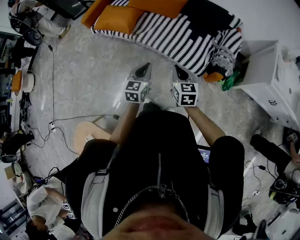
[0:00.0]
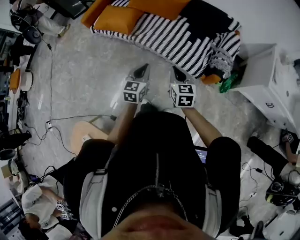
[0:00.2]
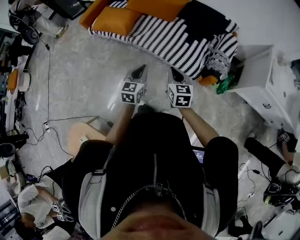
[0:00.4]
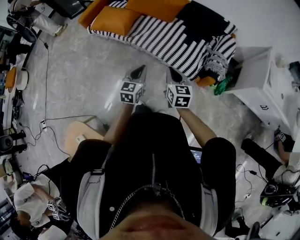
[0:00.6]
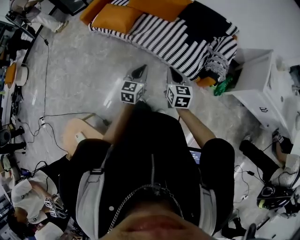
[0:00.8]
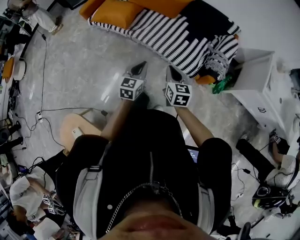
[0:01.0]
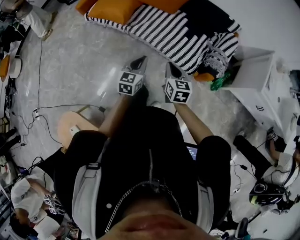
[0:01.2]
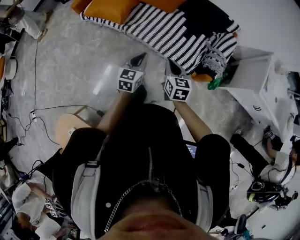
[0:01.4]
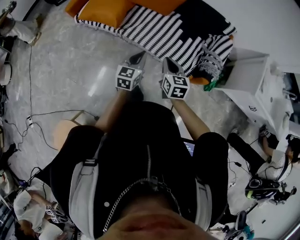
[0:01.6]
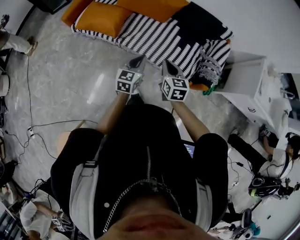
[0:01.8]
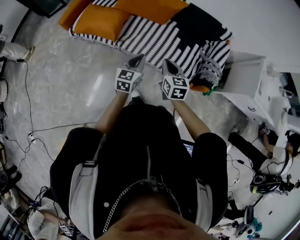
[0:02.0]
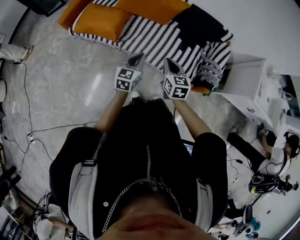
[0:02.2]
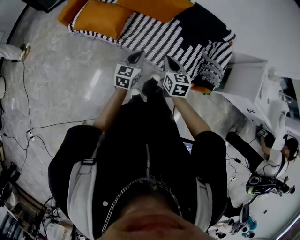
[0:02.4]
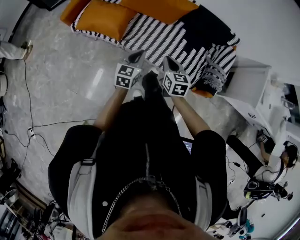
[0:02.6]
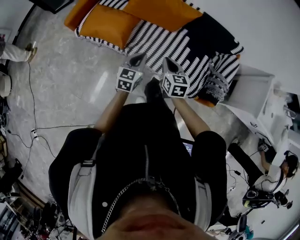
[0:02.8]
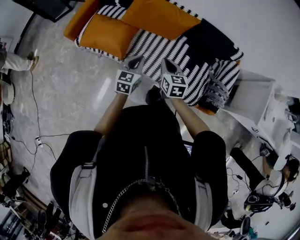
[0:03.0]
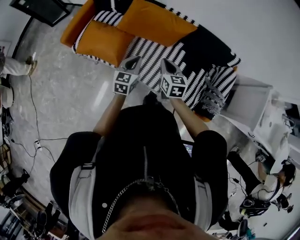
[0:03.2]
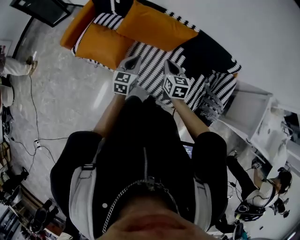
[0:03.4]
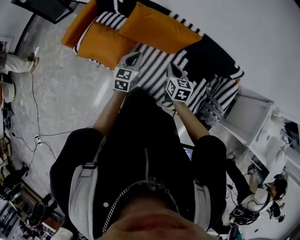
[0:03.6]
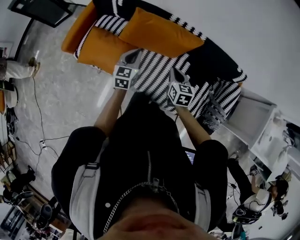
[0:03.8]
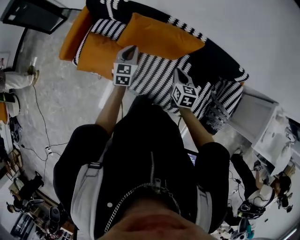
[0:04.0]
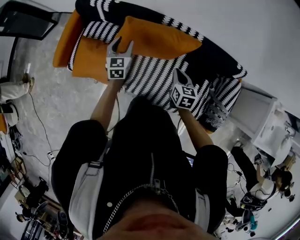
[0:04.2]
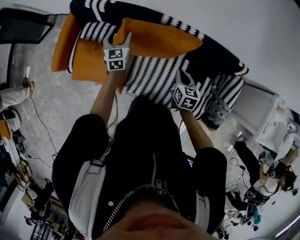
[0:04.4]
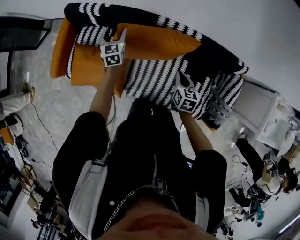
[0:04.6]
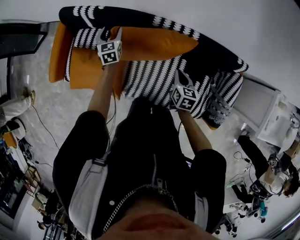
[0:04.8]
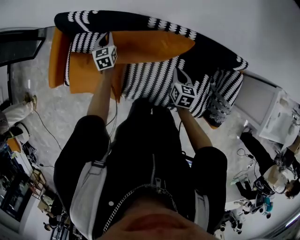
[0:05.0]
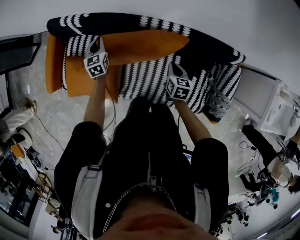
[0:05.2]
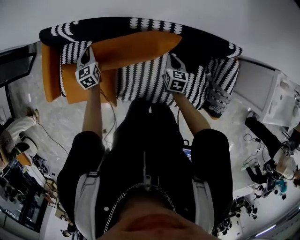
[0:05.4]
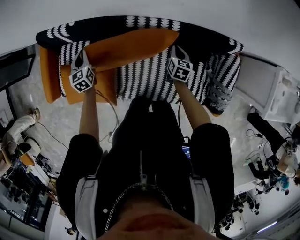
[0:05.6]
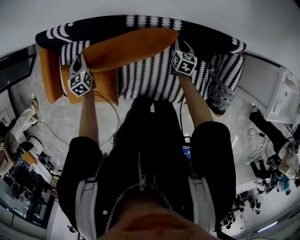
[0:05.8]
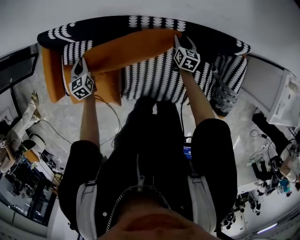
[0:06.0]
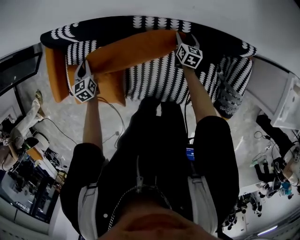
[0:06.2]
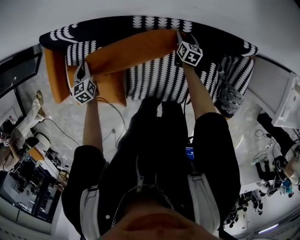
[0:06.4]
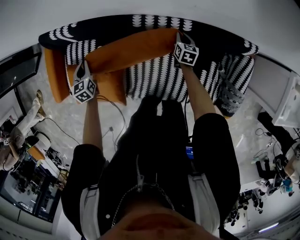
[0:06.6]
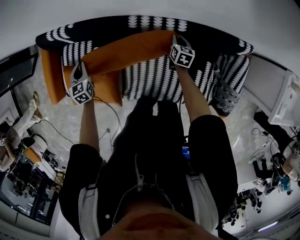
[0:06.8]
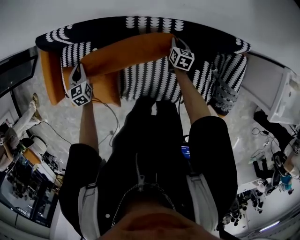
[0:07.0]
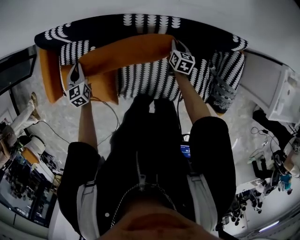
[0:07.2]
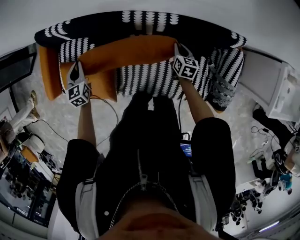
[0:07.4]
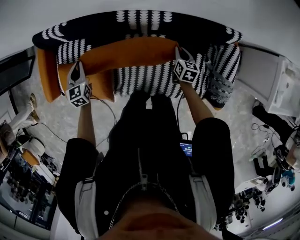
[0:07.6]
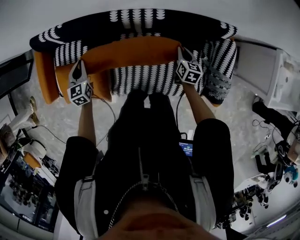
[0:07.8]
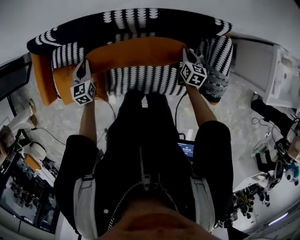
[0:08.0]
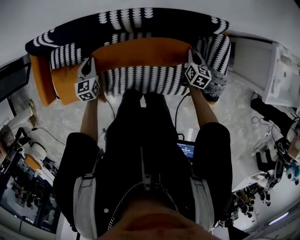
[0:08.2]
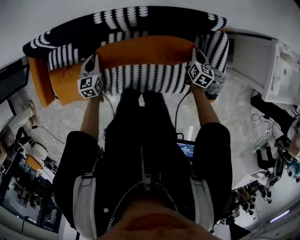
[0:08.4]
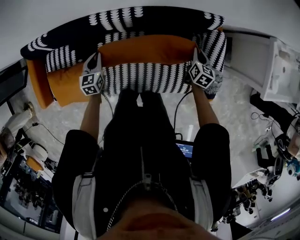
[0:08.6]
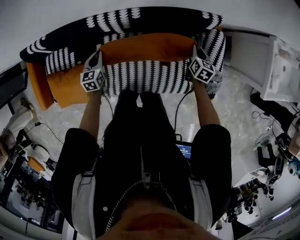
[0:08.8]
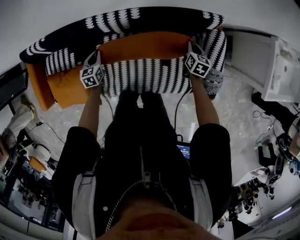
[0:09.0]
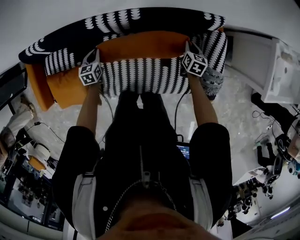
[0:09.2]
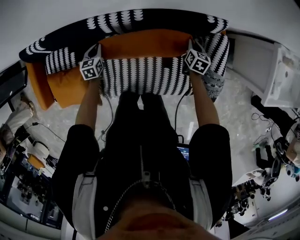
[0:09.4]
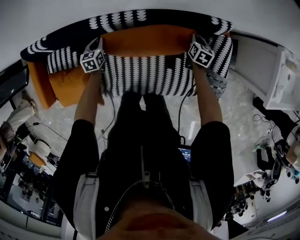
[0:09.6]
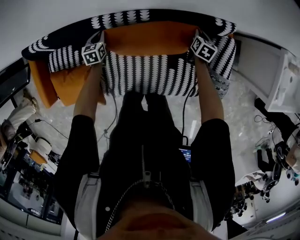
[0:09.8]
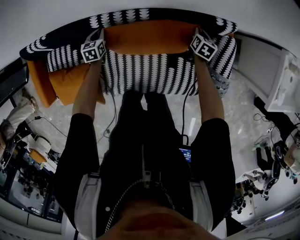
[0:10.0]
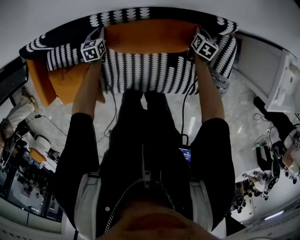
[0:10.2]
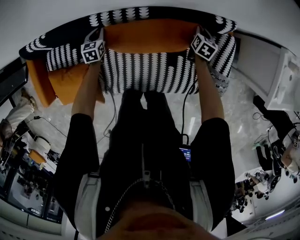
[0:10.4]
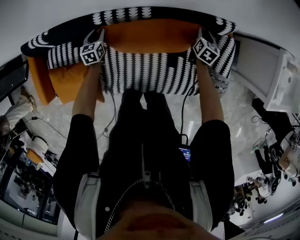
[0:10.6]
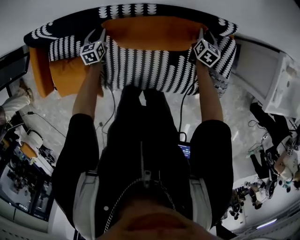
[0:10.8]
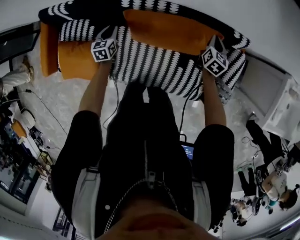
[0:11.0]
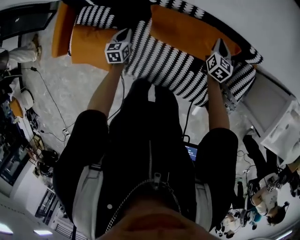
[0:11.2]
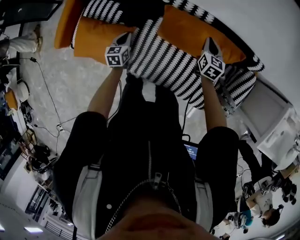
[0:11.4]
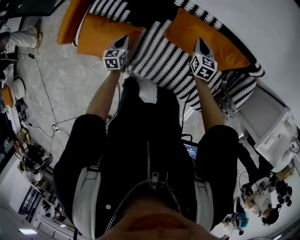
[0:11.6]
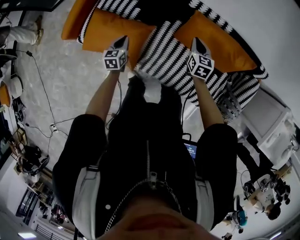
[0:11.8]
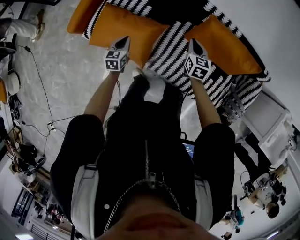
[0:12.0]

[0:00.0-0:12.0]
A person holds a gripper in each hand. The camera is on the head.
0:00.0 to 0:01.6: Both grippers travel together forward, some 10 cm.
0:01.6 to 0:03.0: The right gripper heads forward, covering some 30 cm. The left gripper travels forward and to the left by some 30 cm.
0:03.0 to 0:04.4: The left gripper heads forward, covering roughly 50 cm, and opens its fingers; the right gripper shifts approximately 30 cm forward, and rotates about 20 degrees.
0:04.4 to 0:06.0: The right gripper shifts some 30 cm forward, to the right and downward, and opens up; the left gripper heads downward and forward, covering some 10 cm, and closes.
0:06.0 to 0:07.6: The left gripper goes approximately 10 cm backward, upward and to the right; the right gripper moves backward, about 15 cm, and closes.
0:07.6 to 0:09.0: The right gripper heads to the right, covering some 20 cm, while the left gripper moves to the right and downward, approximately 25 cm.
0:09.0 to 0:10.4: Both grippers travel together forward, some 10 cm.
0:10.4 to 0:12.0: The two grippers travel together, some 50 cm. The left gripper rotates roughly 20 degrees. Meanwhile the right gripper swivels roughly 50 degrees.

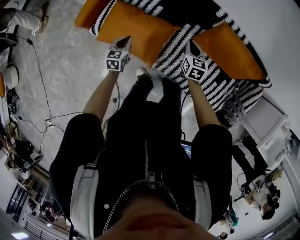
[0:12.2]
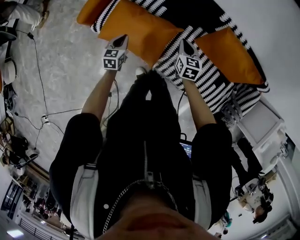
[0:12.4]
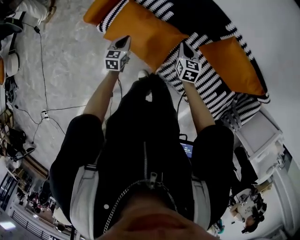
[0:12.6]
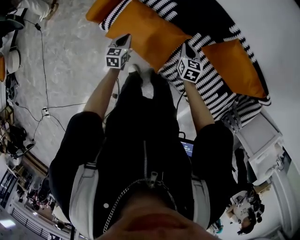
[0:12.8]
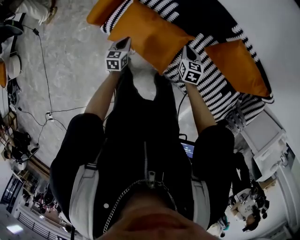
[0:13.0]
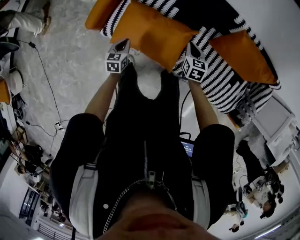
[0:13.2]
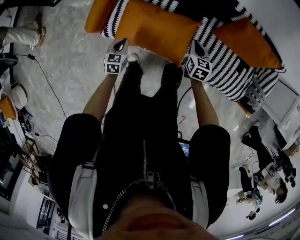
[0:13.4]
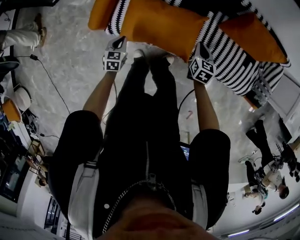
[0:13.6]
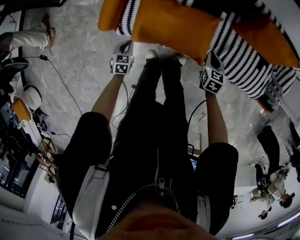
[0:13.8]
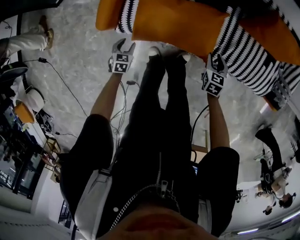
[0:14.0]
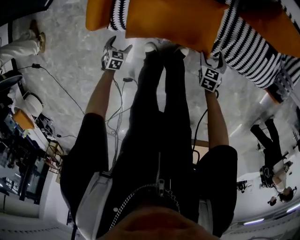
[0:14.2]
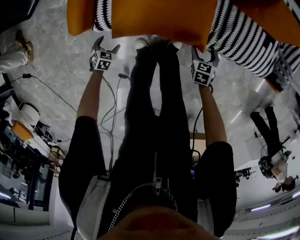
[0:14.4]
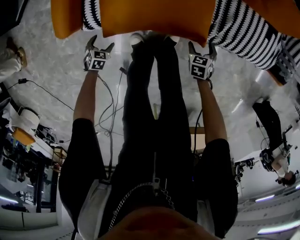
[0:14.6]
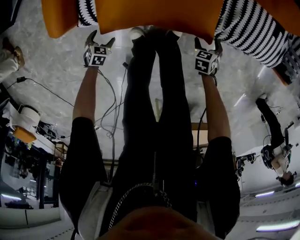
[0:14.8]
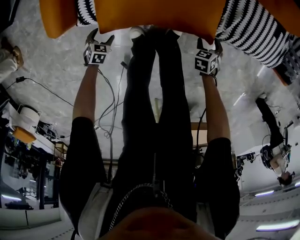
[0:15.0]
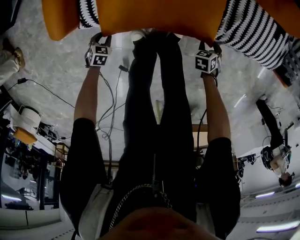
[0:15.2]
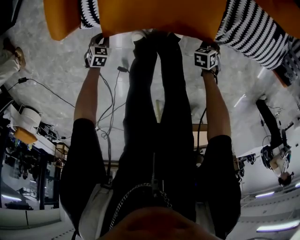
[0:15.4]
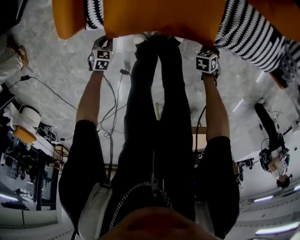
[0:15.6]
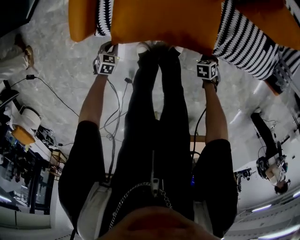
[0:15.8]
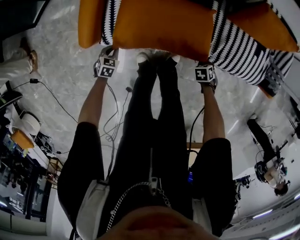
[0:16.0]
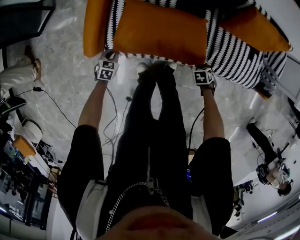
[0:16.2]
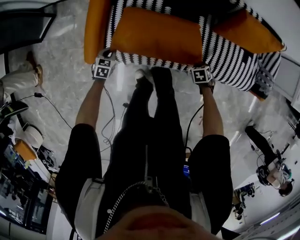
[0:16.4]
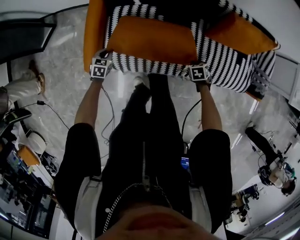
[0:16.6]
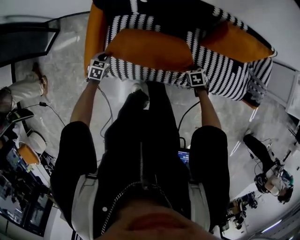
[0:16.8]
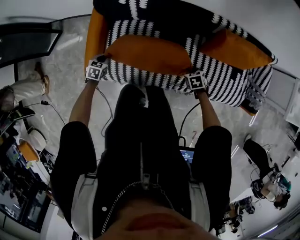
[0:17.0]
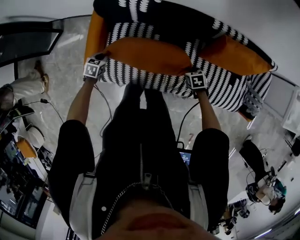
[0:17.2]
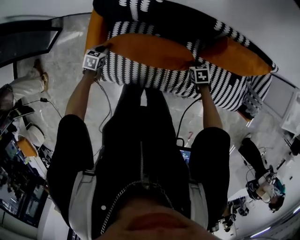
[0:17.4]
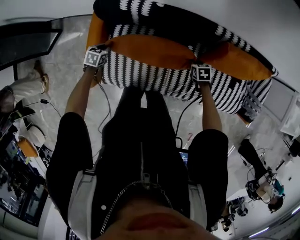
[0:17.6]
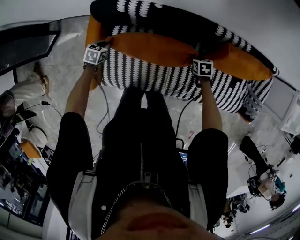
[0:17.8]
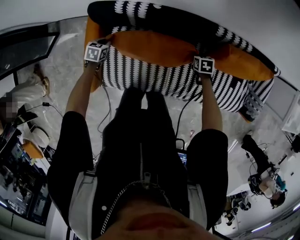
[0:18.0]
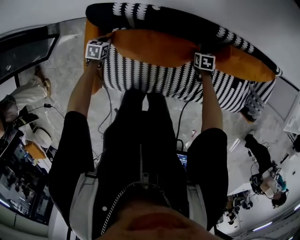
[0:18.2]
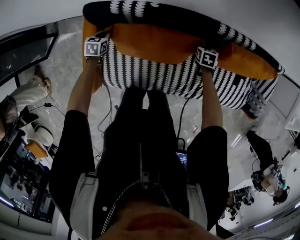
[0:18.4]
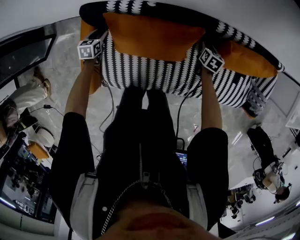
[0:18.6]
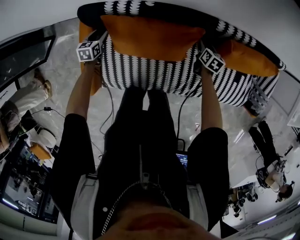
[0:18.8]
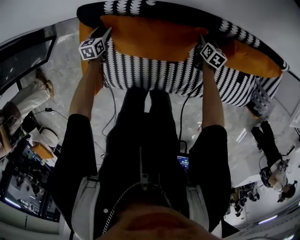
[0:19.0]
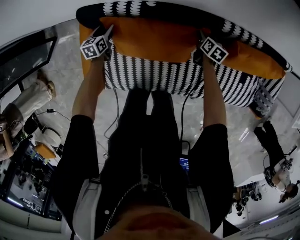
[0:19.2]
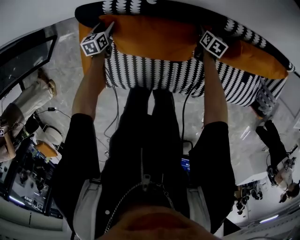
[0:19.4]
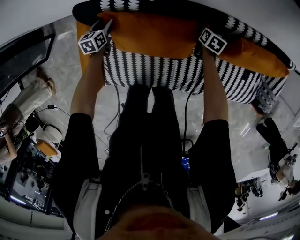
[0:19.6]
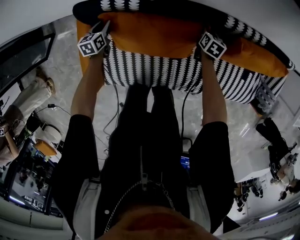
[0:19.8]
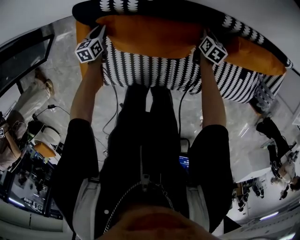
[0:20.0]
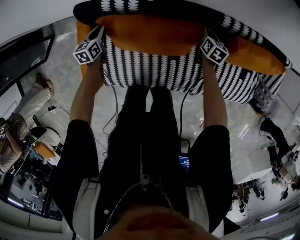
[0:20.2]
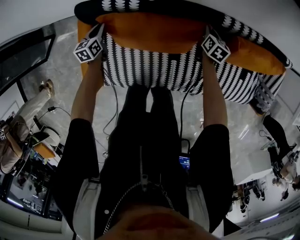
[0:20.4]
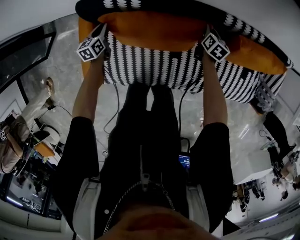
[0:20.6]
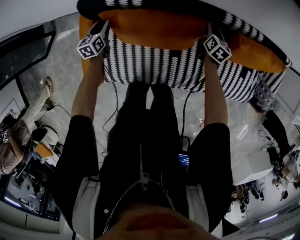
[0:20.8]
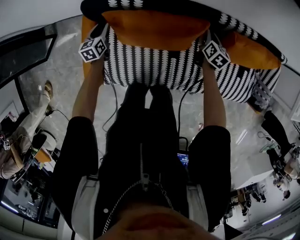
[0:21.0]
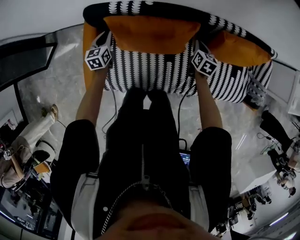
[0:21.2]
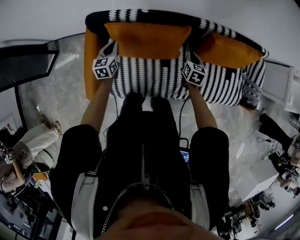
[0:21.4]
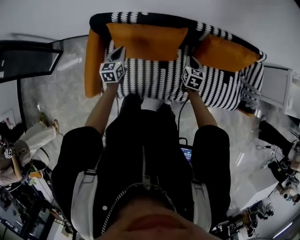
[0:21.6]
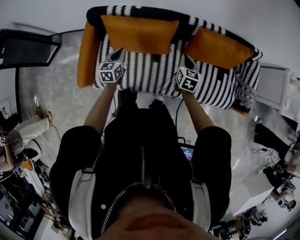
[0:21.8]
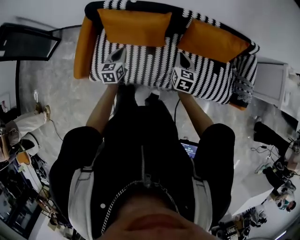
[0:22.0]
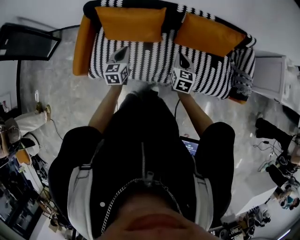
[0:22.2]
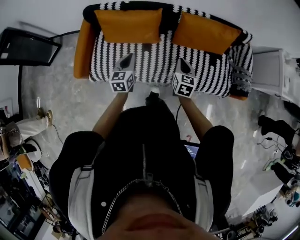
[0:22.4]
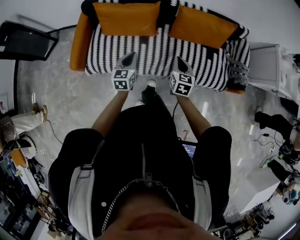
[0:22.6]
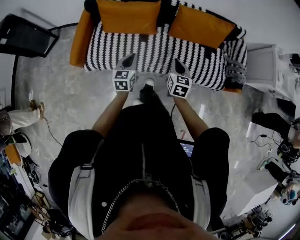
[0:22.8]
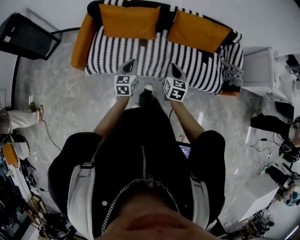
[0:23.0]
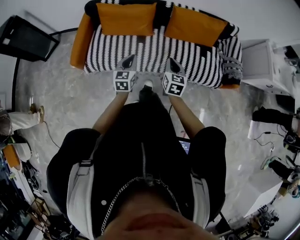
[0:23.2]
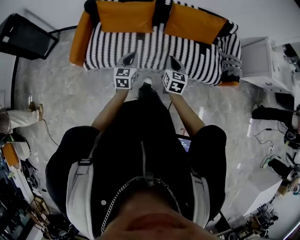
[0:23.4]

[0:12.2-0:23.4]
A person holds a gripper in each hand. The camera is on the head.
0:12.2 to 0:13.8: The right gripper moves to the left, downward and backward, about 25 cm, and rotates some 20 degrees; the left gripper is displaced to the left and downward by approximately 35 cm, and turns by some 20 degrees.
0:13.8 to 0:15.4: The two grippers go roughly 25 cm downward. The left gripper turns by some 30 degrees, and opens and closes again; the right gripper changes its angle by roughly 40 degrees, and opens and closes again.
0:15.4 to 0:17.0: The grippers both shift upward by approximately 25 cm. The right gripper rotates about 20 degrees.
0:17.0 to 0:18.6: The right gripper moves approximately 30 cm, and rotates approximately 40 degrees; the left gripper shifts by roughly 25 cm, and opens.
0:20.2 to 0:21.8: The right gripper moves backward and upward, approximately 35 cm. Meanwhile the left gripper heads backward, to the right and upward, covering approximately 35 cm.
0:21.8 to 0:23.4: The right gripper goes approximately 35 cm backward; the left gripper moves backward and to the right, approximately 40 cm.
